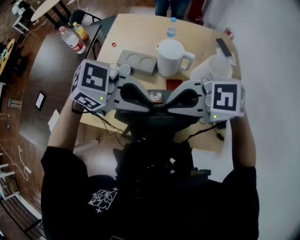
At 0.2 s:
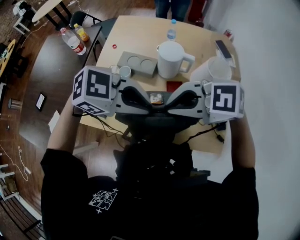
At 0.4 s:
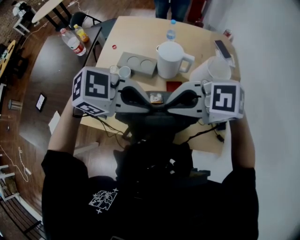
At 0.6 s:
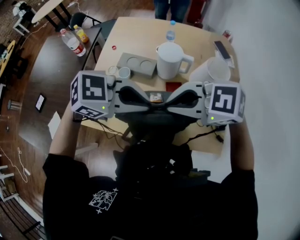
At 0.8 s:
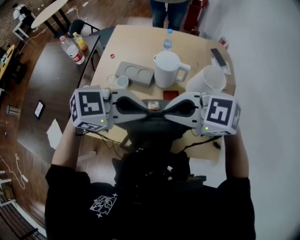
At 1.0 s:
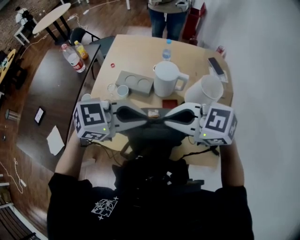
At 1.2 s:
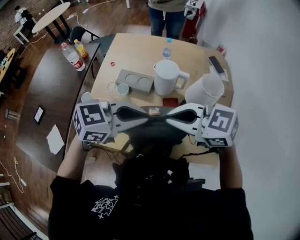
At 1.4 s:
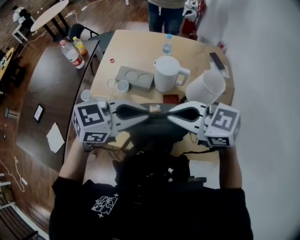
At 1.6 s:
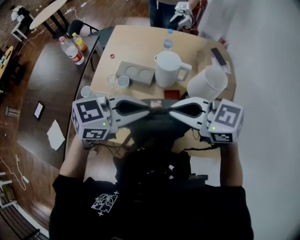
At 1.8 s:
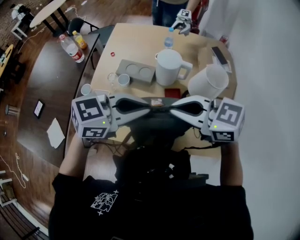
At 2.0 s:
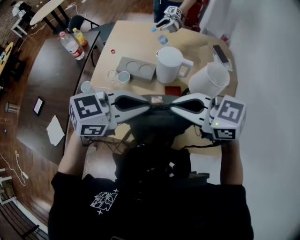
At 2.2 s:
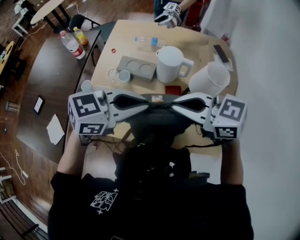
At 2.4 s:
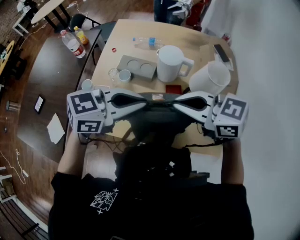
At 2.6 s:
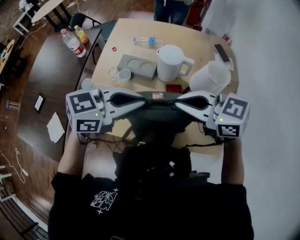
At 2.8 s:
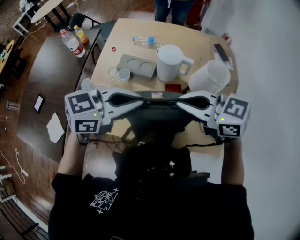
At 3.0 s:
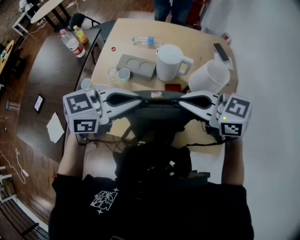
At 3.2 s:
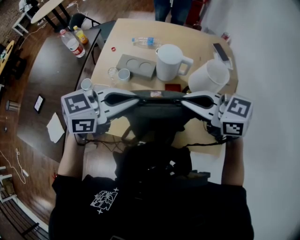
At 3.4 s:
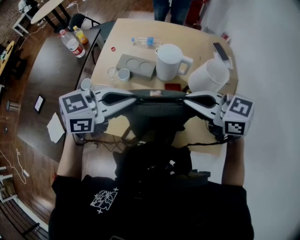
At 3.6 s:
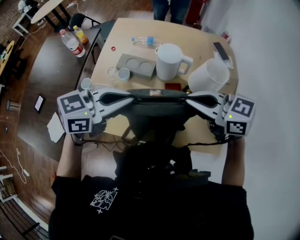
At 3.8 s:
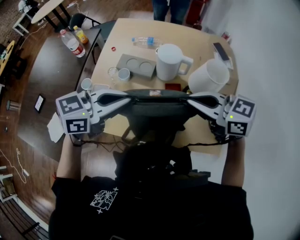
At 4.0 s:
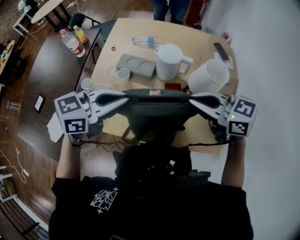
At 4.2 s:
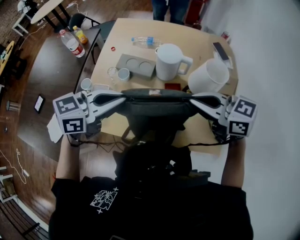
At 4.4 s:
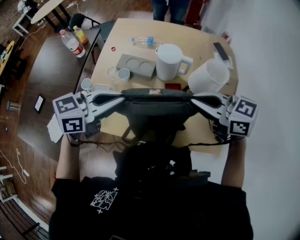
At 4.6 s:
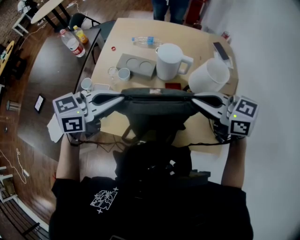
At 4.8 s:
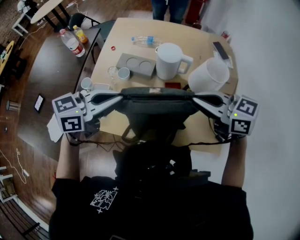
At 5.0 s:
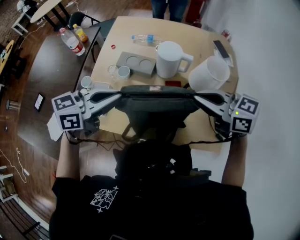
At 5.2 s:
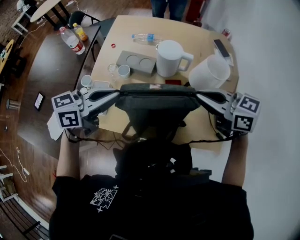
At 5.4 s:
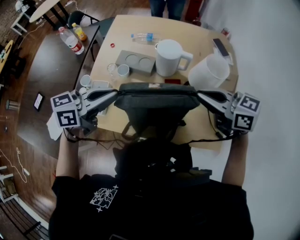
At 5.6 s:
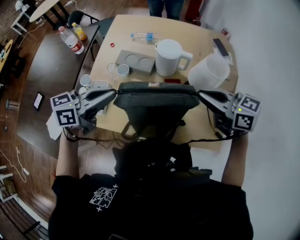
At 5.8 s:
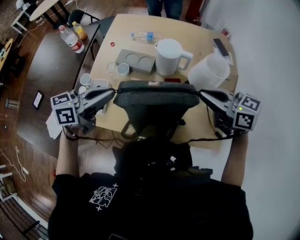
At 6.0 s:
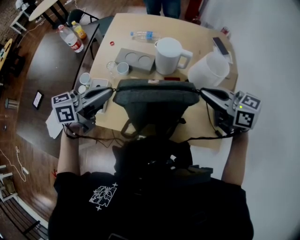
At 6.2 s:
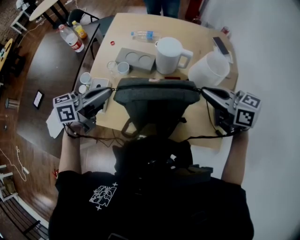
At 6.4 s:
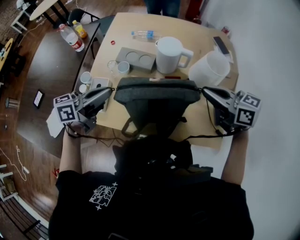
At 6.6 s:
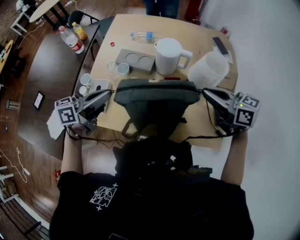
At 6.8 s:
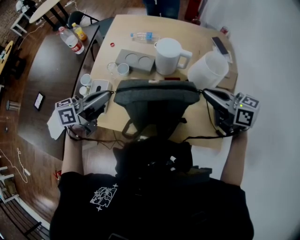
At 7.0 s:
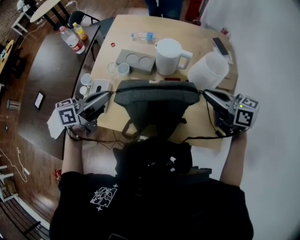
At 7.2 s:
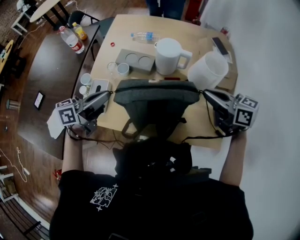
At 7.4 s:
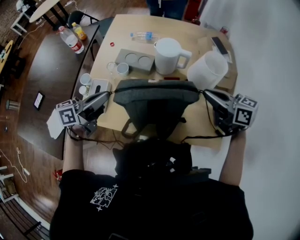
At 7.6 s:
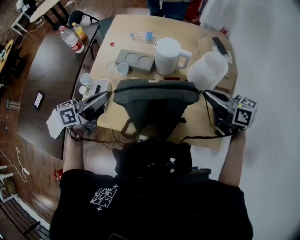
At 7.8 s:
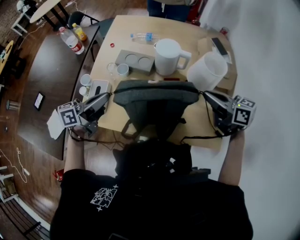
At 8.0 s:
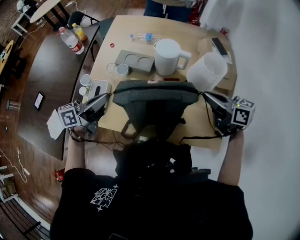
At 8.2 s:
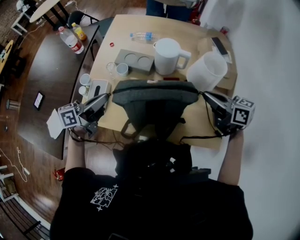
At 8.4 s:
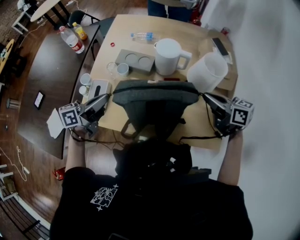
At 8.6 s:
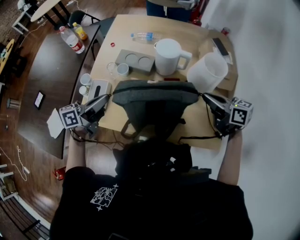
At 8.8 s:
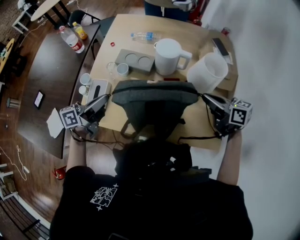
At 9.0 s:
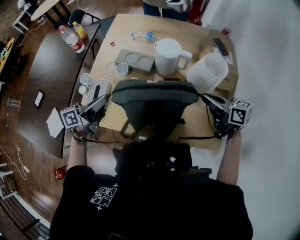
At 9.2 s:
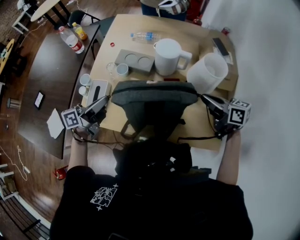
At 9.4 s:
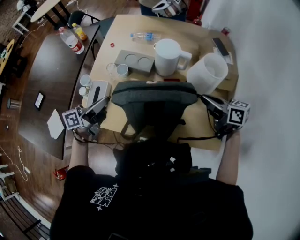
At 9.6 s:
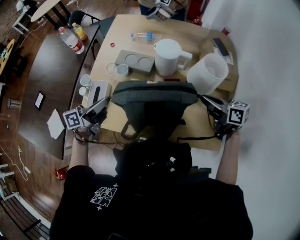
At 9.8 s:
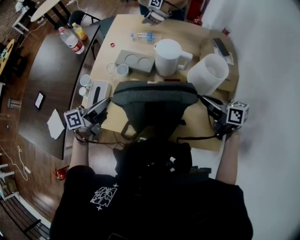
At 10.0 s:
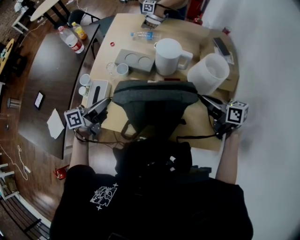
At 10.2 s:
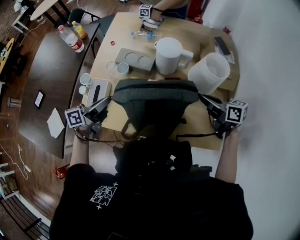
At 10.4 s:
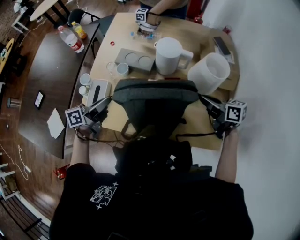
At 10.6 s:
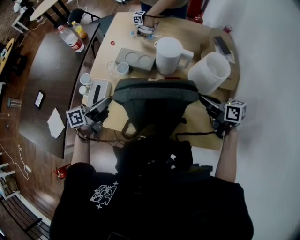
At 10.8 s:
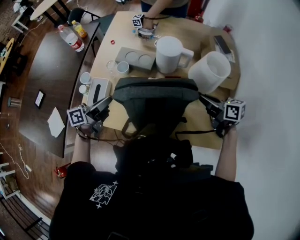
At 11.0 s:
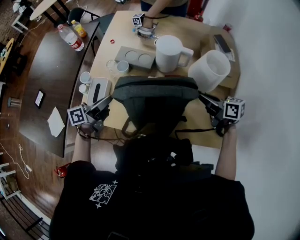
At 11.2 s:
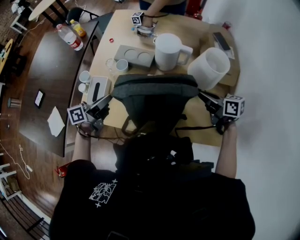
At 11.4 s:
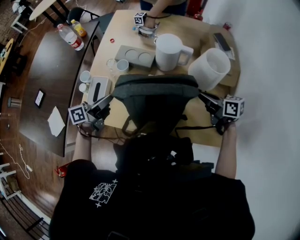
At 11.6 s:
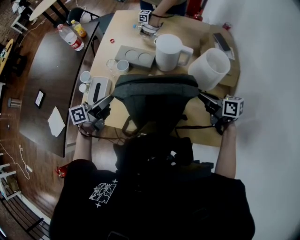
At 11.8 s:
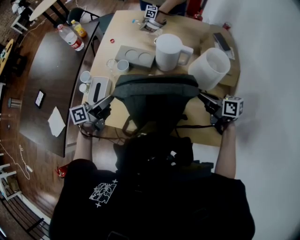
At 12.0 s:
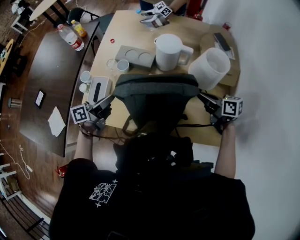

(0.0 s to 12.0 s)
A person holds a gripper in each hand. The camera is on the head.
0.0 s - 1.6 s: The left gripper rotates some 30 degrees. The right gripper rotates approximately 30 degrees.
1.6 s - 3.0 s: The grippers make only small movements.
3.0 s - 4.4 s: The left gripper changes place by roughly 5 cm.
4.4 s - 6.0 s: The right gripper changes place by approximately 5 cm. Meanwhile the left gripper moves about 5 cm, and rotates approximately 20 degrees.
6.0 s - 7.6 s: The right gripper ends up roughly 5 cm from where it was.
7.6 s - 9.0 s: The right gripper moves downward, roughly 5 cm.
9.0 s - 10.4 s: The grippers stay close to where they were, moving slightly.
10.4 s - 12.0 s: The grippers move only a little.

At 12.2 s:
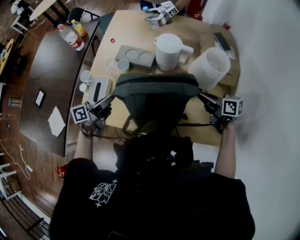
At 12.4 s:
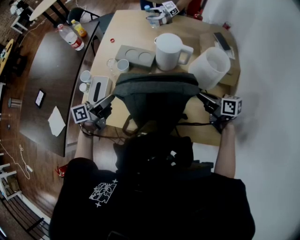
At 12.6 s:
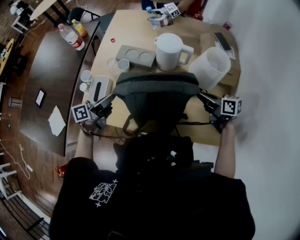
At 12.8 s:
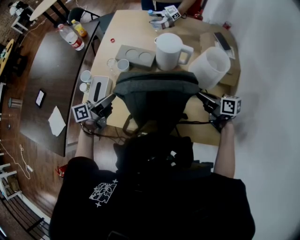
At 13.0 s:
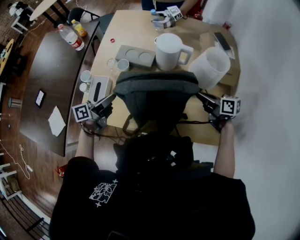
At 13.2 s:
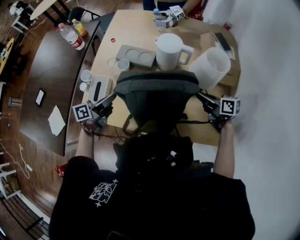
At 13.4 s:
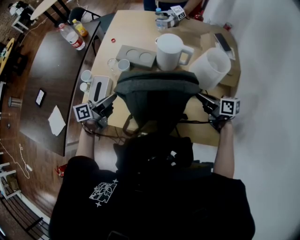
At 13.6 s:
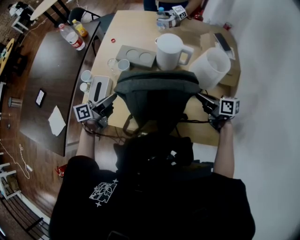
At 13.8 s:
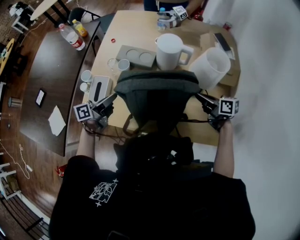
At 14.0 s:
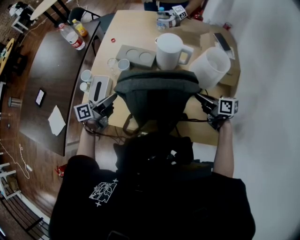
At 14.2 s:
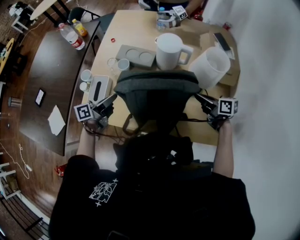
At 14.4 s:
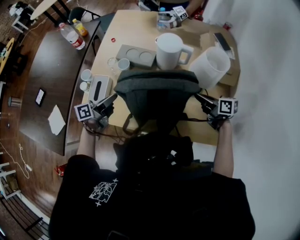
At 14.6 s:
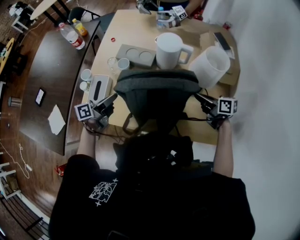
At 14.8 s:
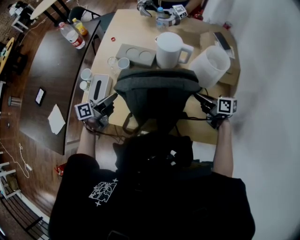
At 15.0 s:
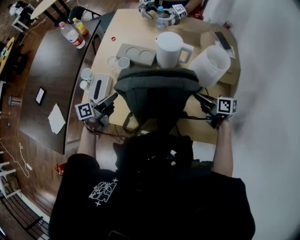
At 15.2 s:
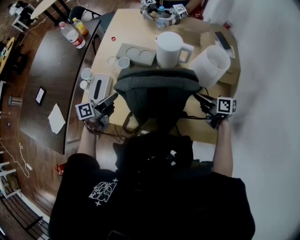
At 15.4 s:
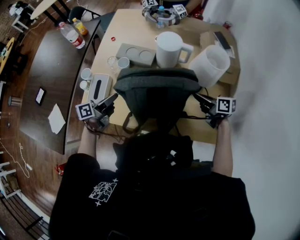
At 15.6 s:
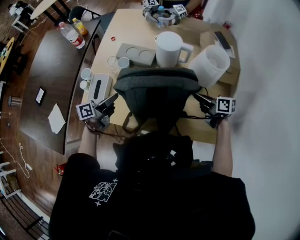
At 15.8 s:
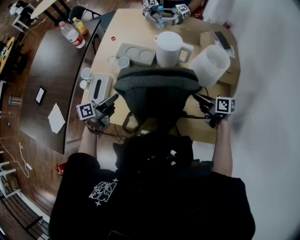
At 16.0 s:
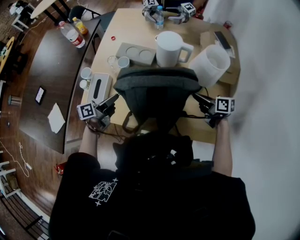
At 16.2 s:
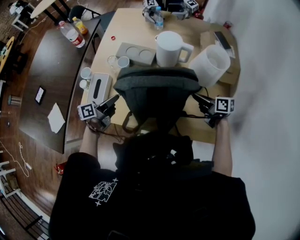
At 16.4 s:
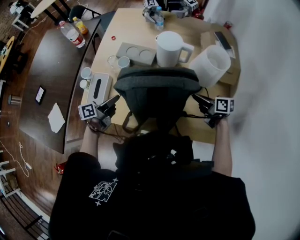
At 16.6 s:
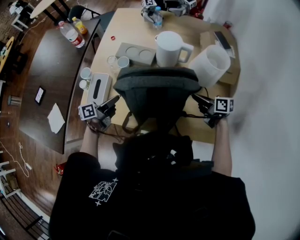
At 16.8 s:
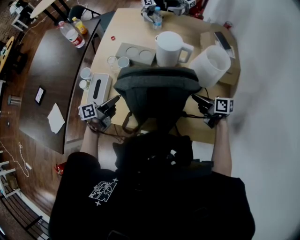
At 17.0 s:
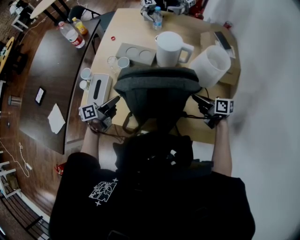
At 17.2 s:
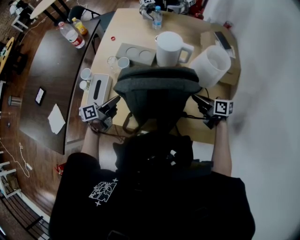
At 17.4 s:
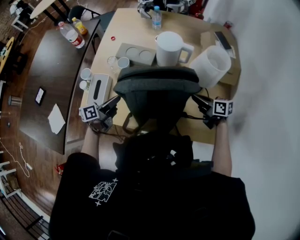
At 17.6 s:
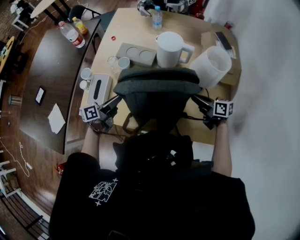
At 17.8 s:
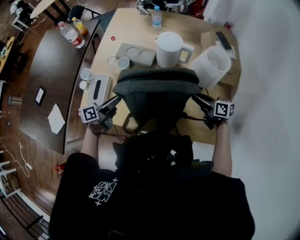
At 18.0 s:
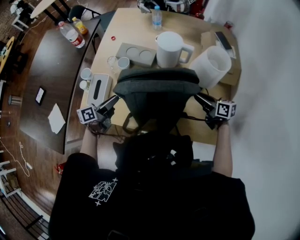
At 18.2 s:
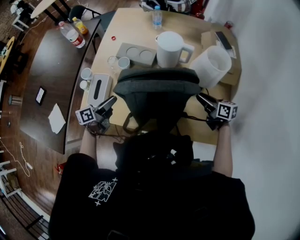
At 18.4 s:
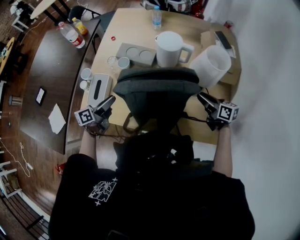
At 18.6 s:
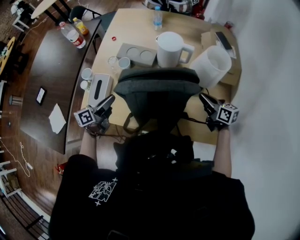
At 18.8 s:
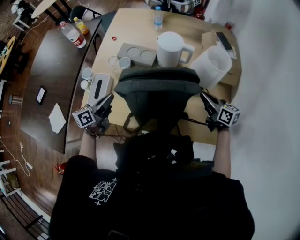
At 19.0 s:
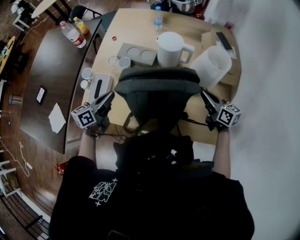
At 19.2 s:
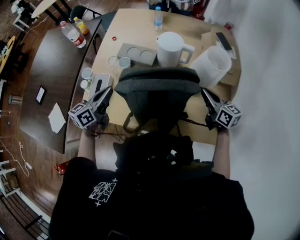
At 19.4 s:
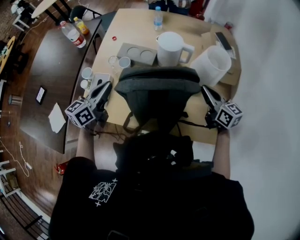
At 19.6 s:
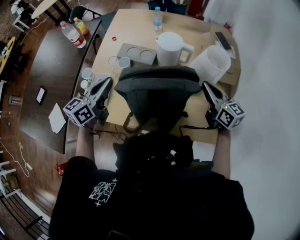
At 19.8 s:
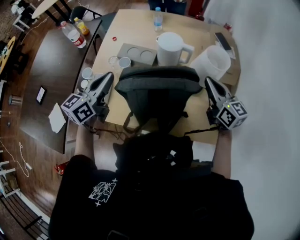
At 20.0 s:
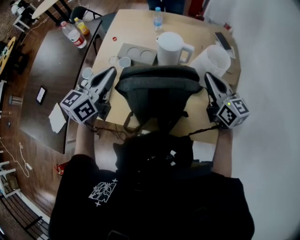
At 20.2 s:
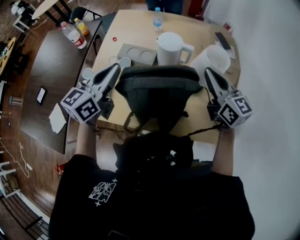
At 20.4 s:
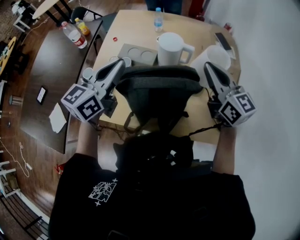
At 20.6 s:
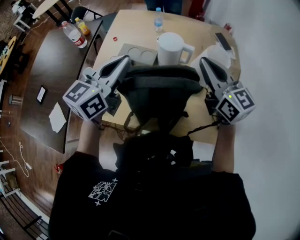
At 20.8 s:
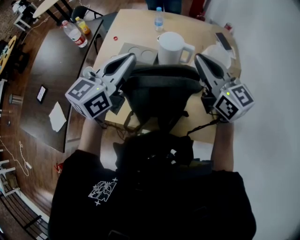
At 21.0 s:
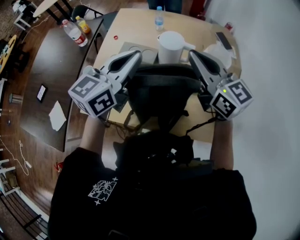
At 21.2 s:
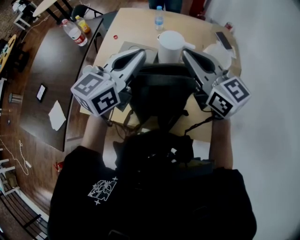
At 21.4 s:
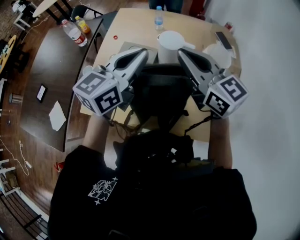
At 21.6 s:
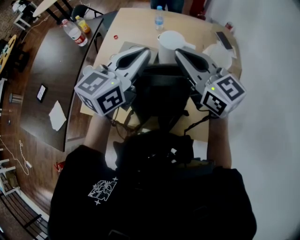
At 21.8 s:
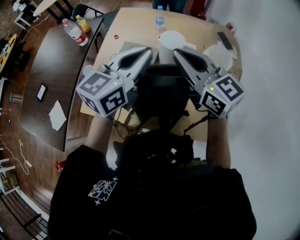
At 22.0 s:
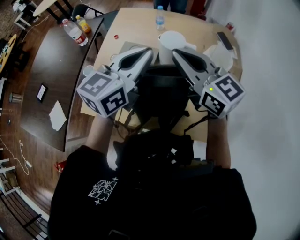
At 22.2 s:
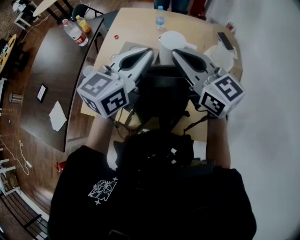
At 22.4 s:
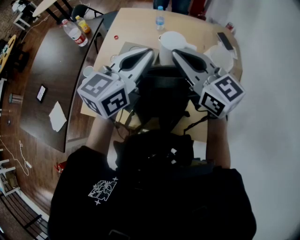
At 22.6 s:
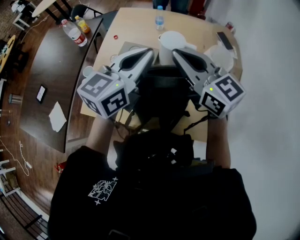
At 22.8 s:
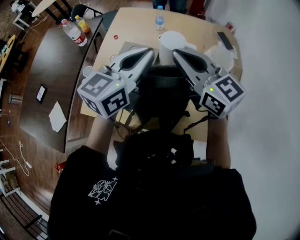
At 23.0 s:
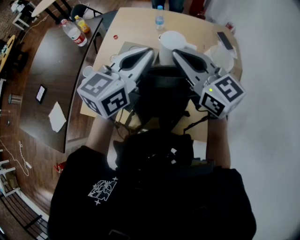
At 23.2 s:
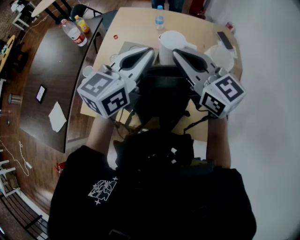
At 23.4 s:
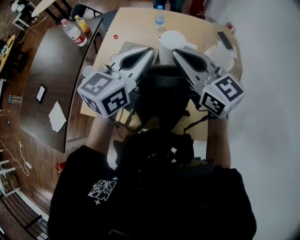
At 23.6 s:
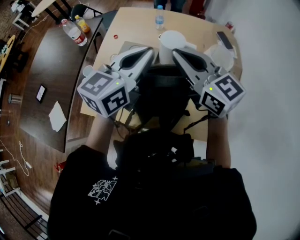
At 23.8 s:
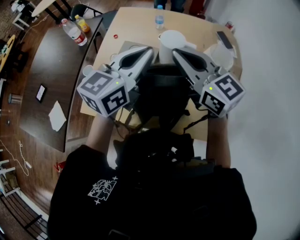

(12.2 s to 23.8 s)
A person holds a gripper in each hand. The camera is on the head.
12.2 s - 15.0 s: The grippers make only small movements.
15.0 s - 16.6 s: There are only small adjustments of the grippers.
16.6 s - 18.0 s: The left gripper opens. Meanwhile the right gripper opens its fingers.
18.0 s - 19.4 s: Both grippers move upward, approximately 10 cm. The left gripper rotates roughly 30 degrees, and closes; the right gripper turns by about 20 degrees, and closes up.
19.4 s - 21.0 s: The left gripper travels upward and to the right by approximately 20 cm. Meanwhile the right gripper moves upward and to the left, about 25 cm, and turns by about 20 degrees.
21.0 s - 22.4 s: The right gripper is displaced to the left by approximately 5 cm.
22.4 s - 23.8 s: Neither gripper changes place.
